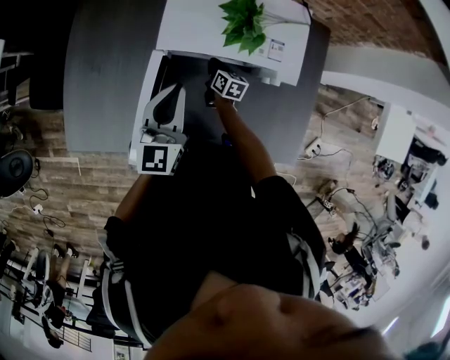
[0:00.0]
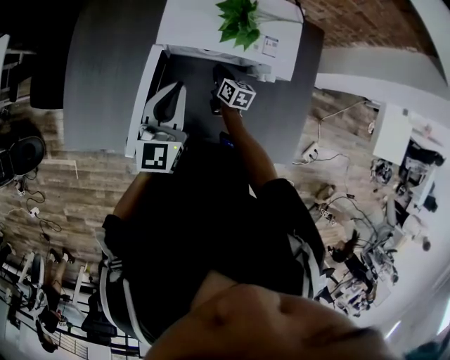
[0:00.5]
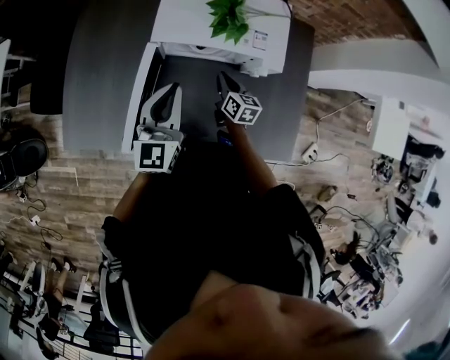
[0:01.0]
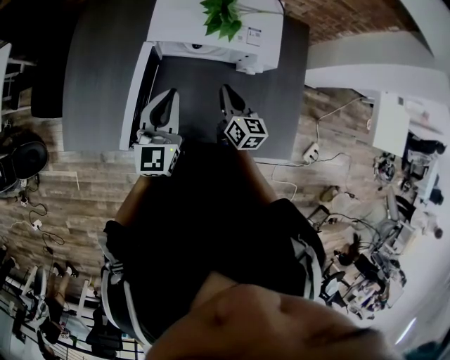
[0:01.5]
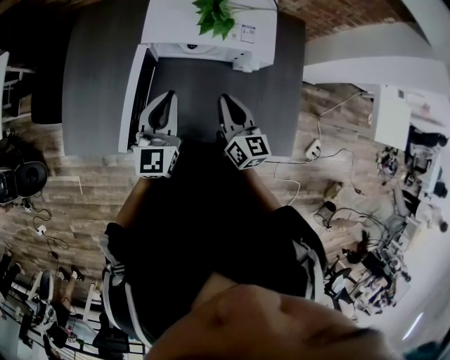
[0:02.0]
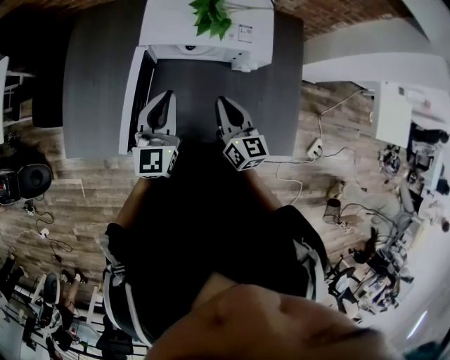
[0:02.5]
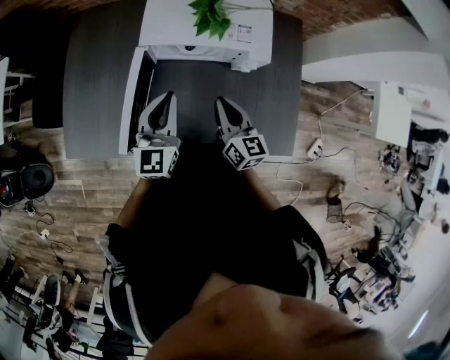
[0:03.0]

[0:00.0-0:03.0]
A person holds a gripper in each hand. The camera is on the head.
0:00.0 to 0:01.5: The right gripper heads upward and backward, covering approximately 25 cm, and changes its angle by roughly 20 degrees. Meanwhile the left gripper shifts roughly 10 cm backward.
0:01.5 to 0:03.0: The right gripper goes some 5 cm upward.

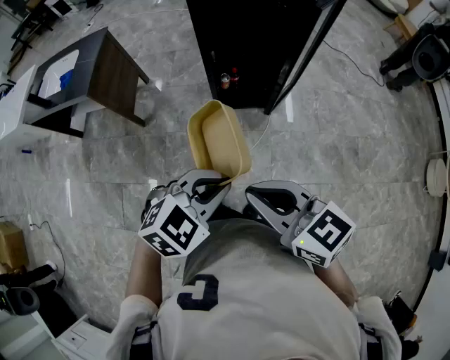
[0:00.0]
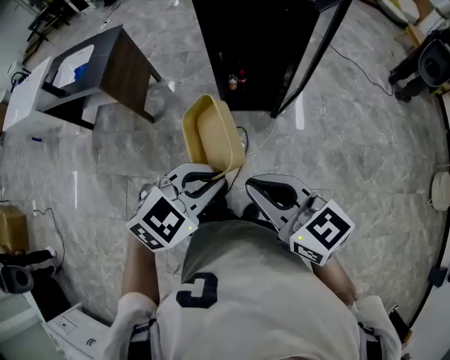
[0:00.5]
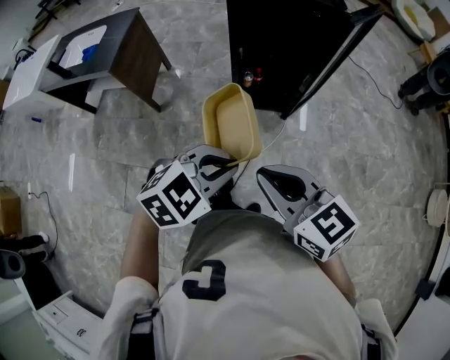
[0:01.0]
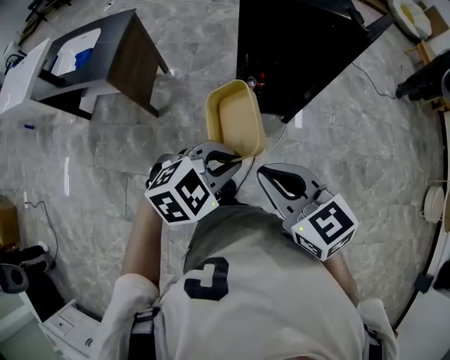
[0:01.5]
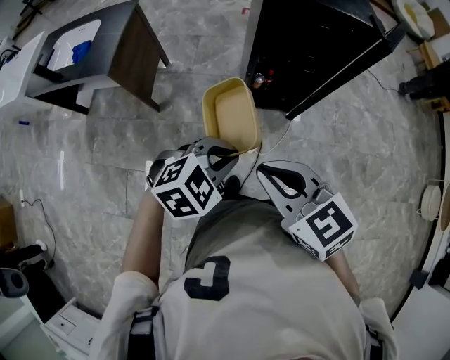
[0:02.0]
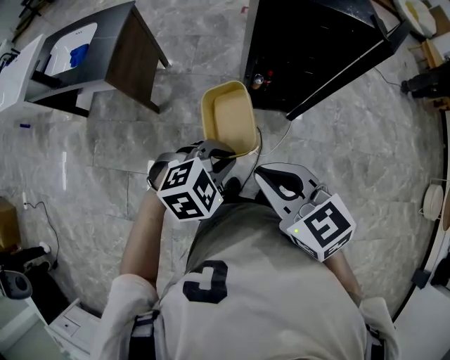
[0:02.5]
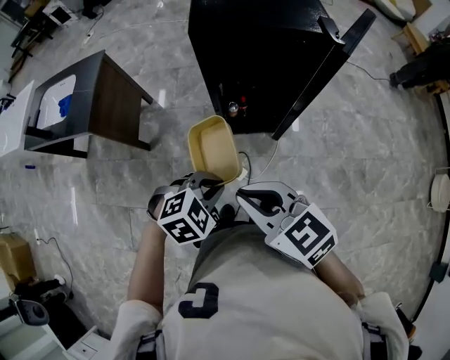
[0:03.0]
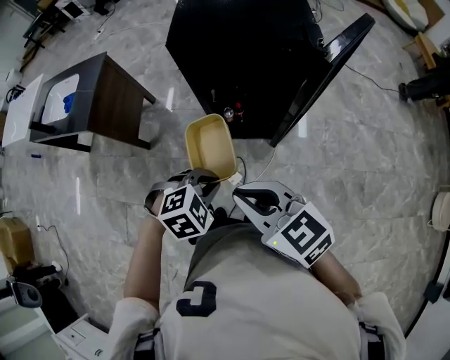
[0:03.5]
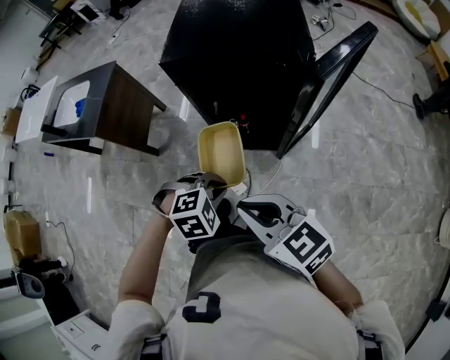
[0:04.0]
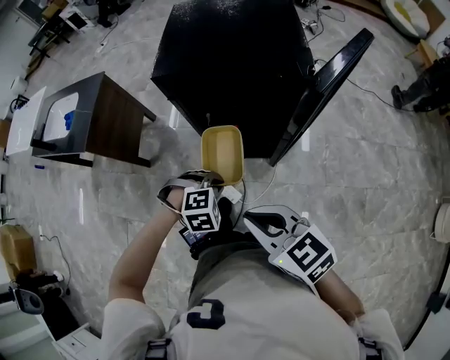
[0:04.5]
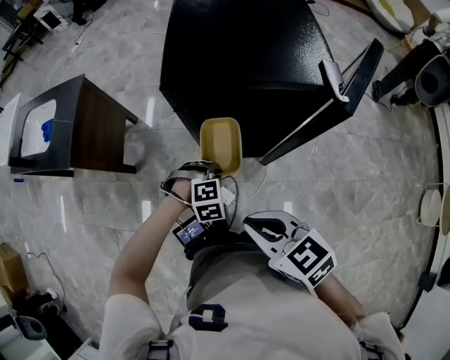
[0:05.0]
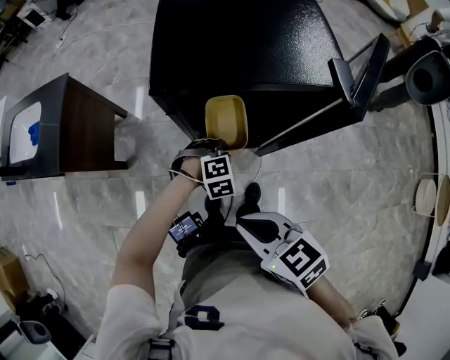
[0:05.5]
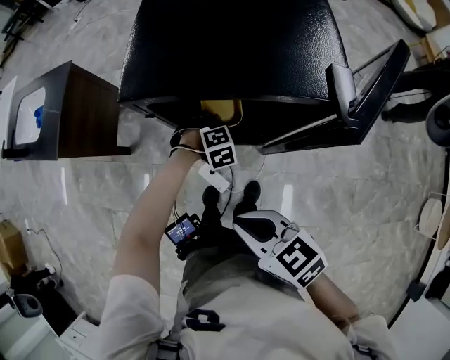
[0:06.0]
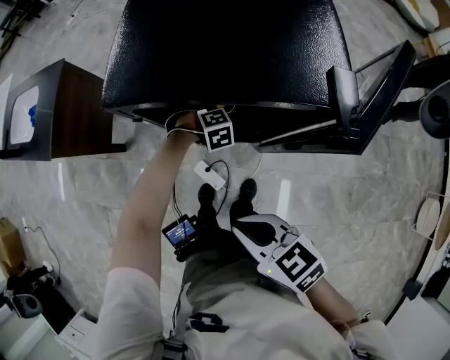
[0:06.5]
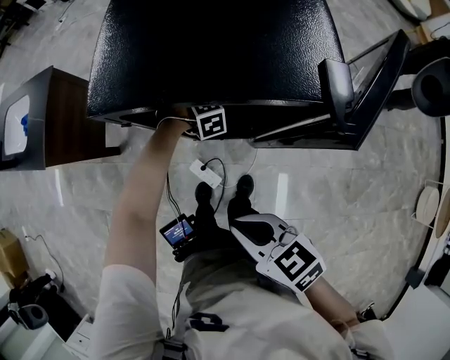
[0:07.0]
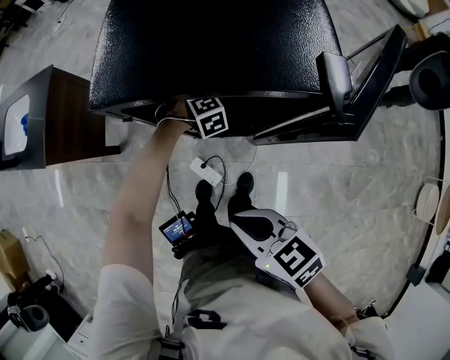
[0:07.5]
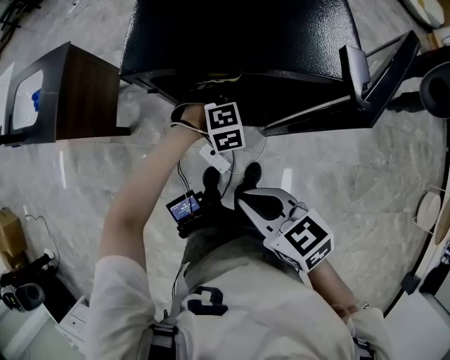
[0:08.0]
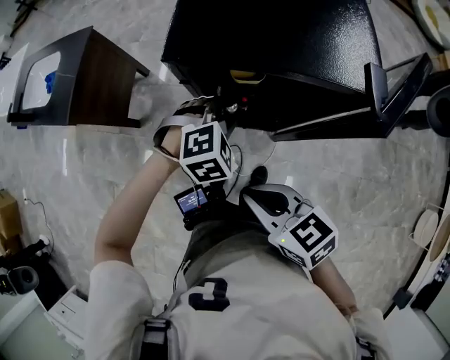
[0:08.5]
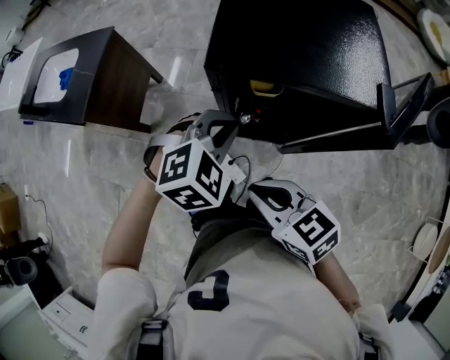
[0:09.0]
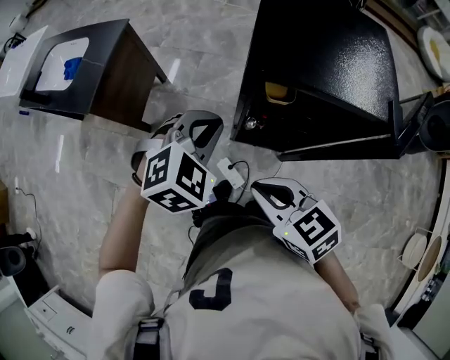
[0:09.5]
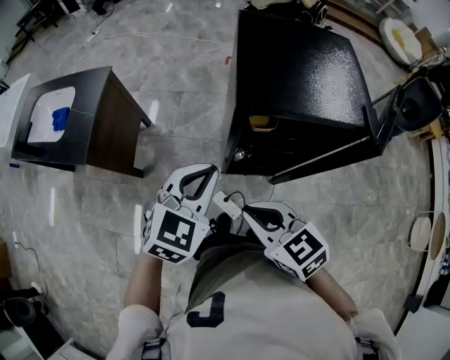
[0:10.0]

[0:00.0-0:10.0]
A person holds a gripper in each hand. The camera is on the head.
0:00.0 to 0:02.0: Both grippers move to the left and forward, about 20 cm.
0:02.0 to 0:04.0: Both grippers travel together to the right and forward, some 25 cm. The left gripper rotates some 20 degrees.
0:04.0 to 0:06.0: The right gripper heads forward and downward, covering some 15 cm; the left gripper travels forward and downward by some 35 cm.
0:06.0 to 0:08.0: The left gripper shifts roughly 5 cm upward, and opens up.
0:08.0 to 0:10.0: The left gripper shifts some 35 cm to the left and upward, angles its fingers upward, by about 30 degrees, and closes up. Meanwhile the right gripper heads to the left and forward, covering some 20 cm.

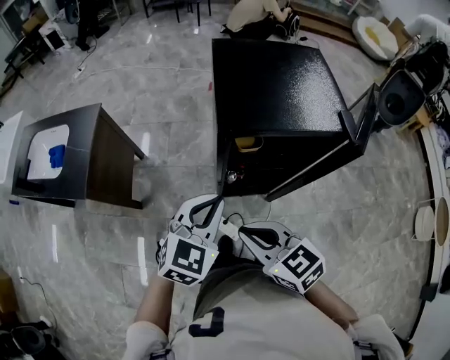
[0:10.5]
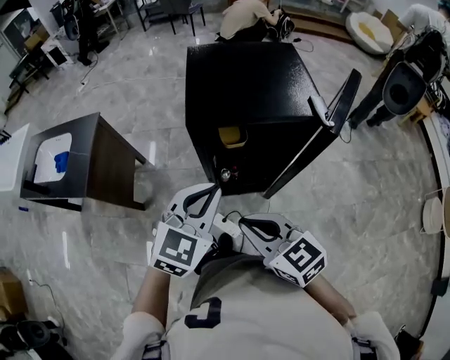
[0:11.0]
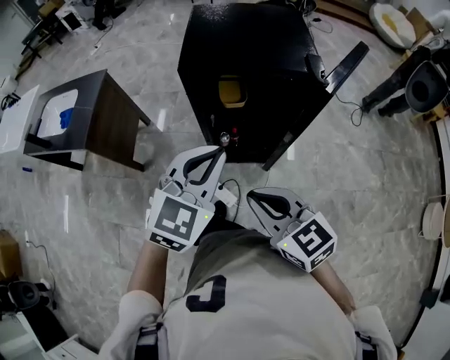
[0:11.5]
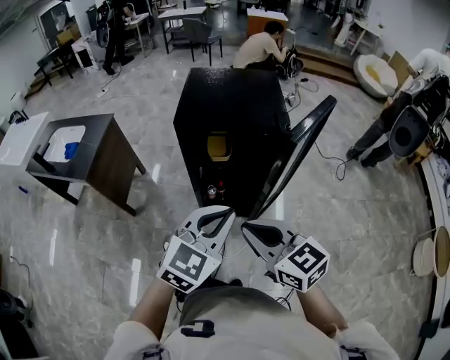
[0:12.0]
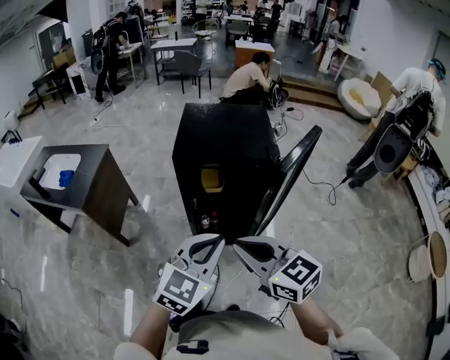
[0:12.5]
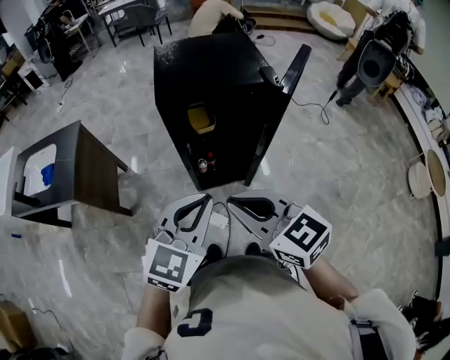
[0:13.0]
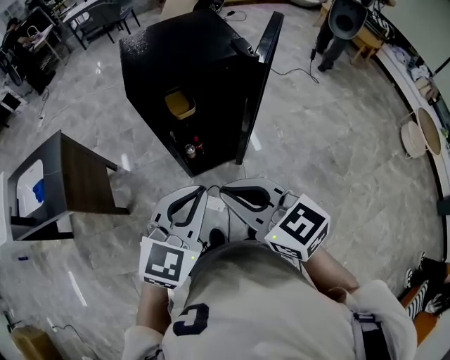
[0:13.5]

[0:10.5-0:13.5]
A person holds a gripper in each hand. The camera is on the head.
0:10.5 to 0:12.0: The grippers both shift to the right, backward and upward by approximately 25 cm.
0:12.0 to 0:13.5: Both grippers travel together to the left, approximately 10 cm.

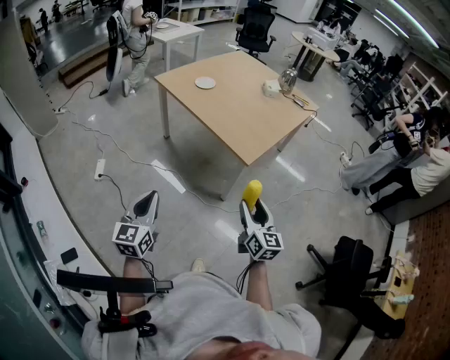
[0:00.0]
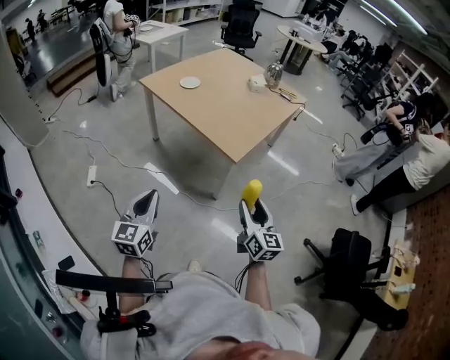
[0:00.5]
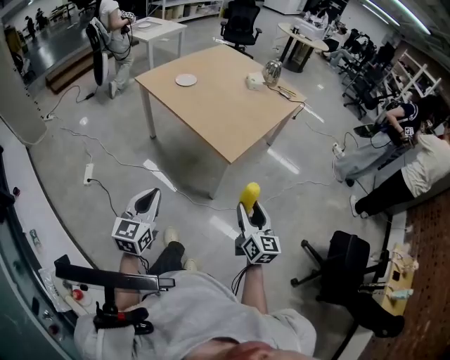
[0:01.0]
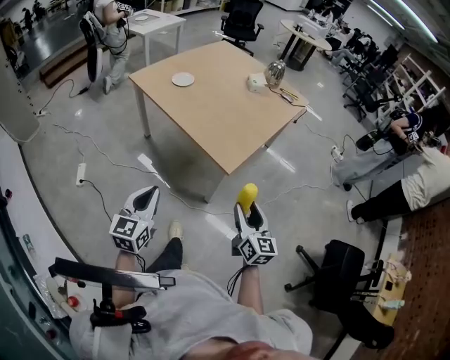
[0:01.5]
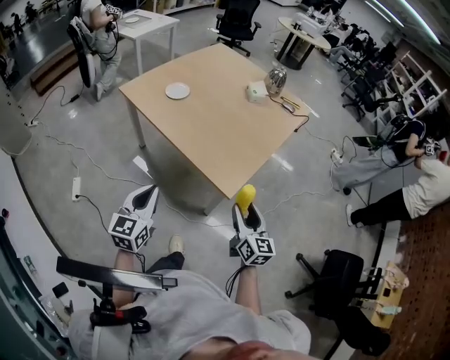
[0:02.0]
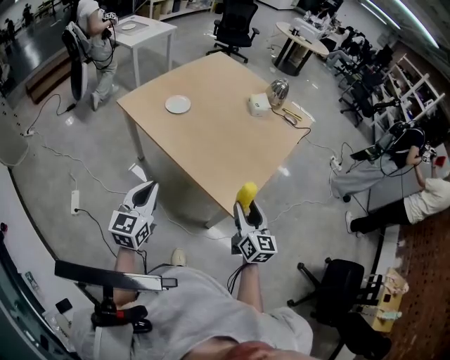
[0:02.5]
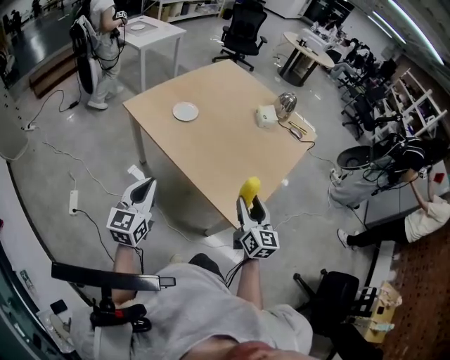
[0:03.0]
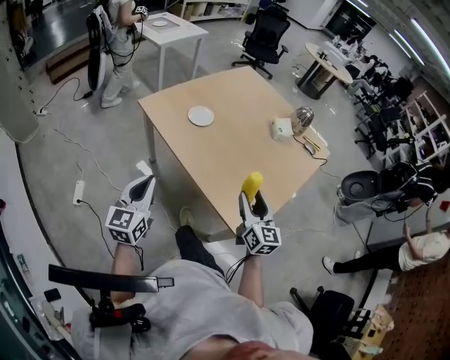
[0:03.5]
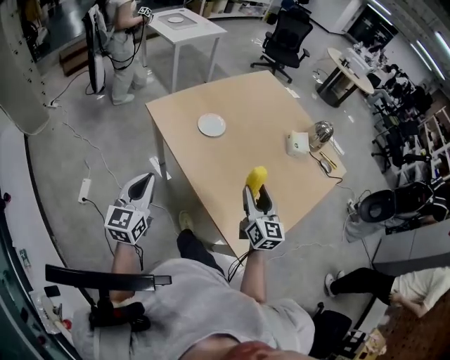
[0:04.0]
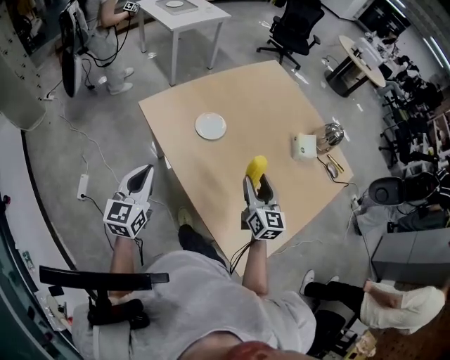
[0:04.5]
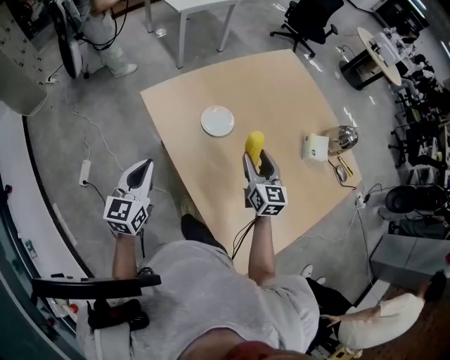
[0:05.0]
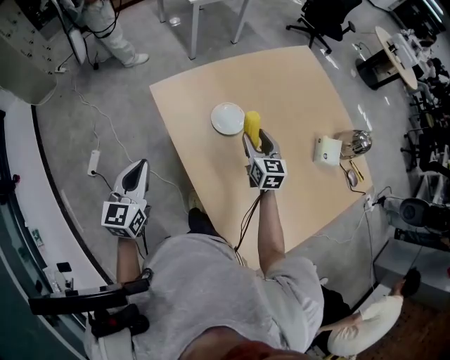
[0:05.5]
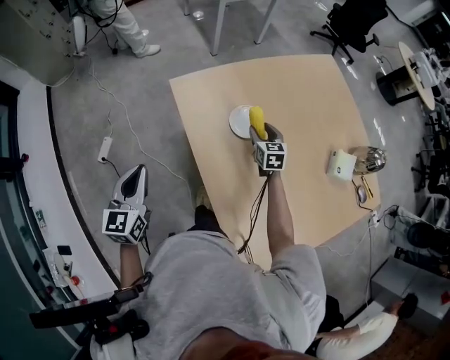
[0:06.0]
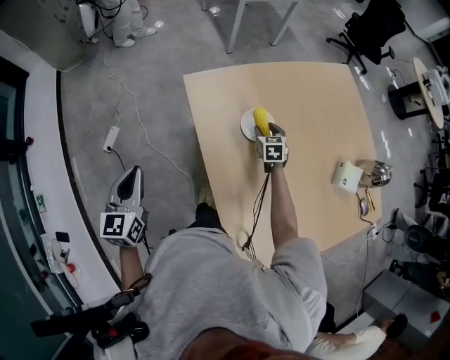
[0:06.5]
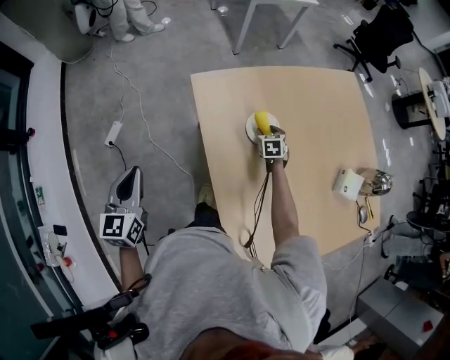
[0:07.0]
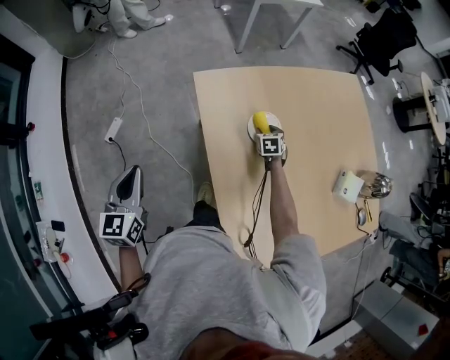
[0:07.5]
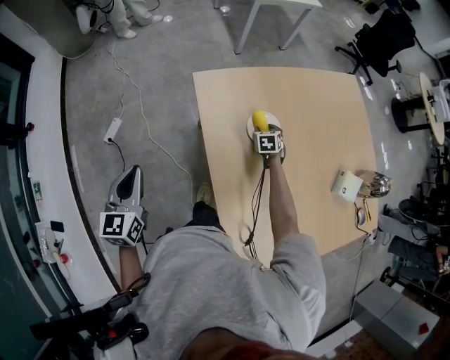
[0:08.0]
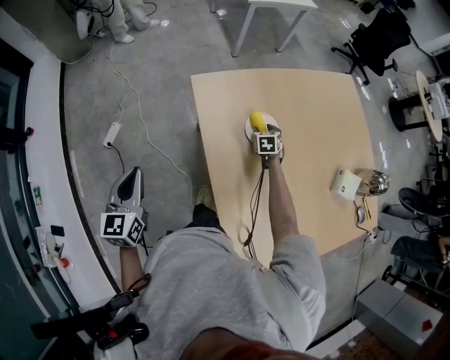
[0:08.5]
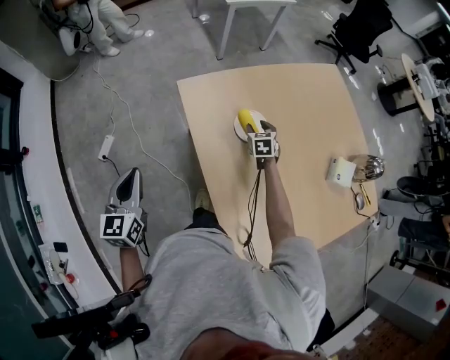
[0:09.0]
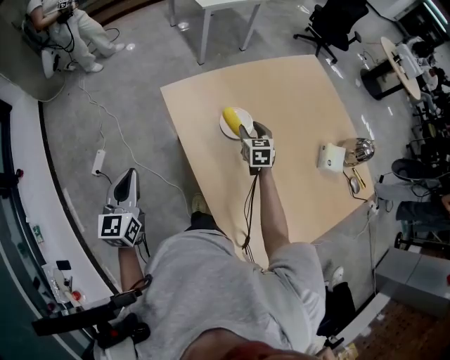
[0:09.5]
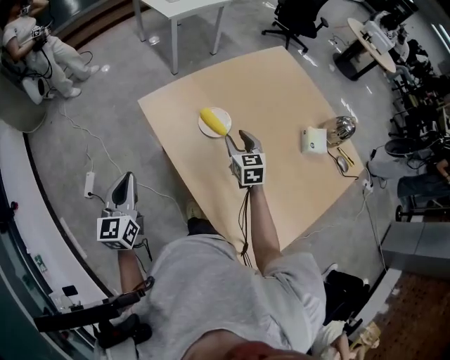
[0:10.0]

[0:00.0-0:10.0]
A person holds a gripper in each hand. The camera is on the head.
0:00.0 to 0:02.0: The grippers both shift forward by approximately 25 cm.
0:02.0 to 0:04.0: The left gripper heads forward and to the left, covering about 30 cm. Meanwhile the right gripper moves forward, about 35 cm.
0:04.0 to 0:06.0: The right gripper moves forward and downward, roughly 40 cm, and tips its fingers downward by roughly 30 degrees. The left gripper heads forward, covering some 15 cm, and rotates about 20 degrees.
0:06.0 to 0:08.0: The right gripper goes roughly 10 cm downward and forward, and rotates some 20 degrees; the left gripper is displaced to the left by about 5 cm.
0:08.0 to 0:10.0: The left gripper goes roughly 5 cm to the right. Meanwhile the right gripper goes approximately 25 cm upward and backward, and rotates some 30 degrees.
